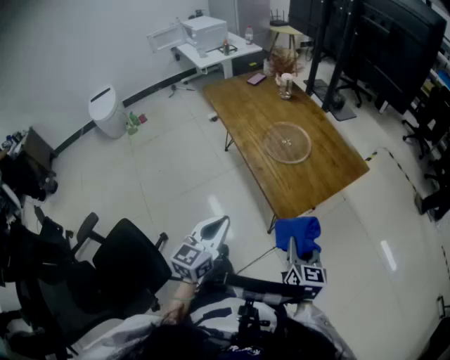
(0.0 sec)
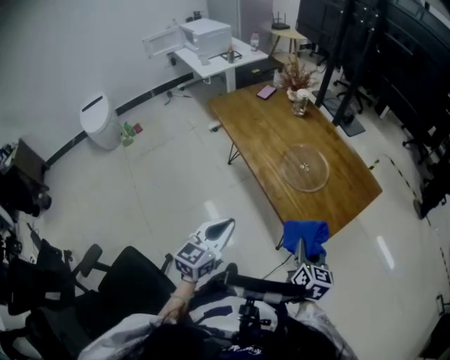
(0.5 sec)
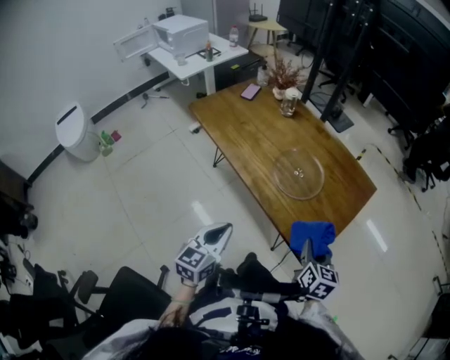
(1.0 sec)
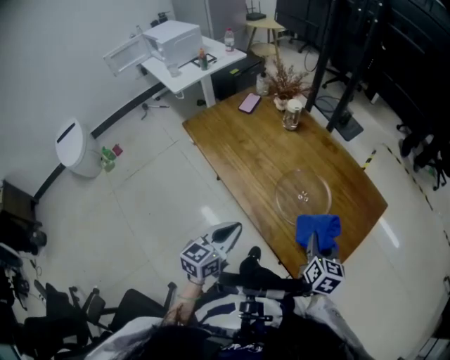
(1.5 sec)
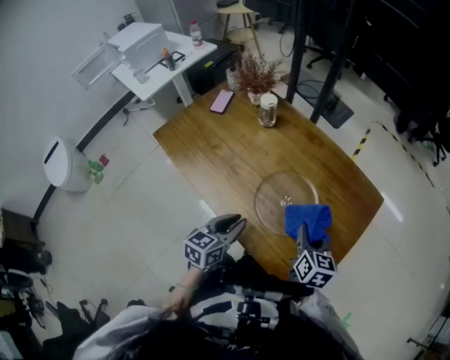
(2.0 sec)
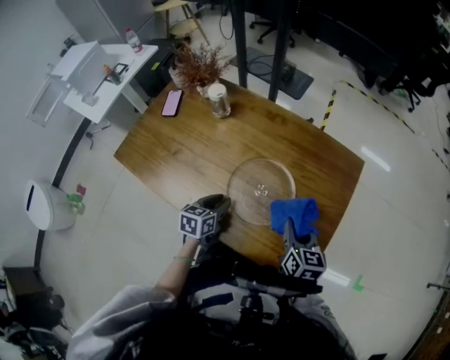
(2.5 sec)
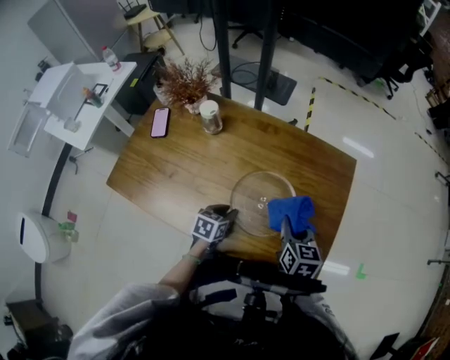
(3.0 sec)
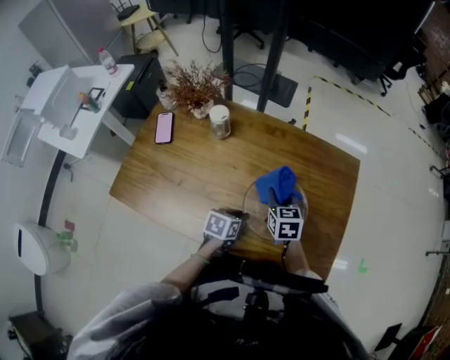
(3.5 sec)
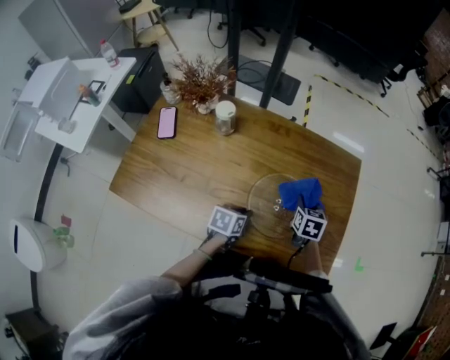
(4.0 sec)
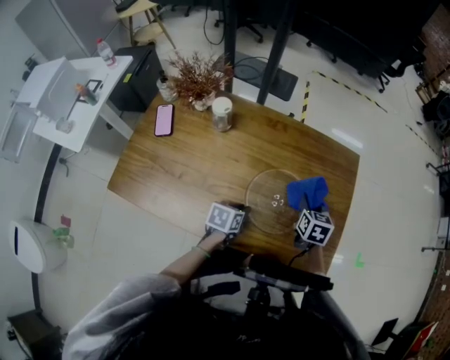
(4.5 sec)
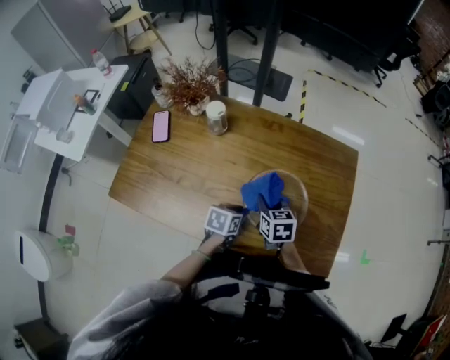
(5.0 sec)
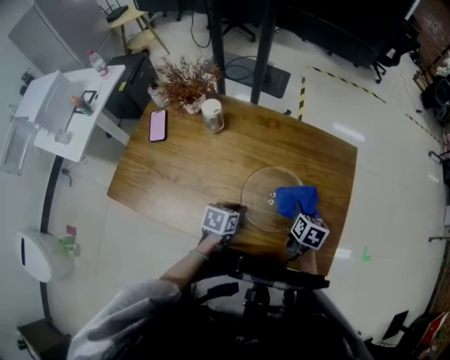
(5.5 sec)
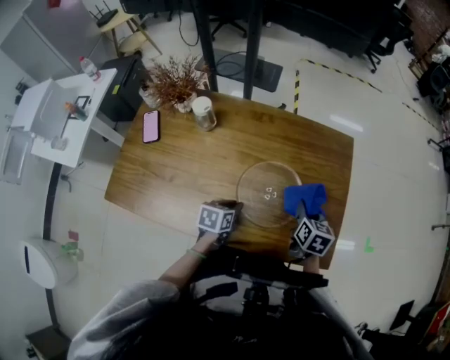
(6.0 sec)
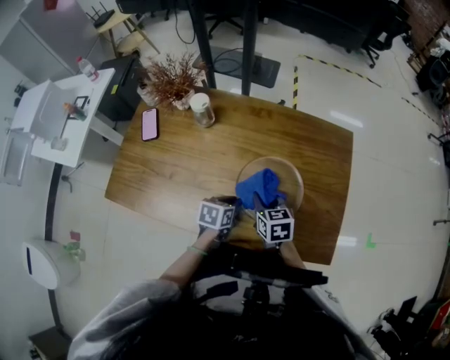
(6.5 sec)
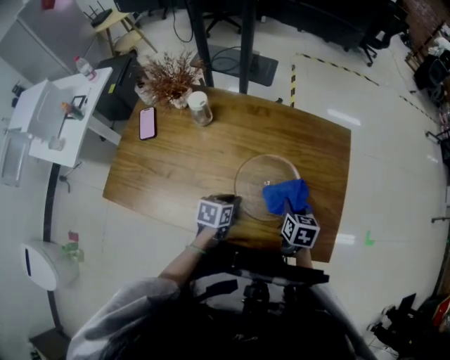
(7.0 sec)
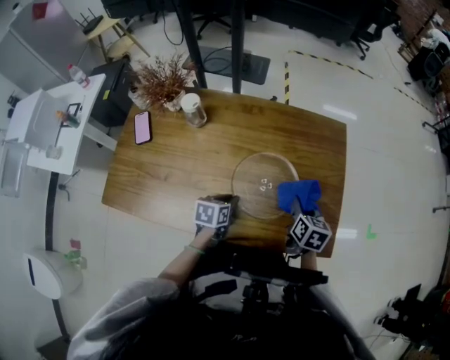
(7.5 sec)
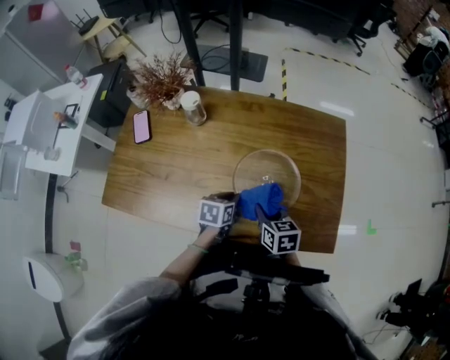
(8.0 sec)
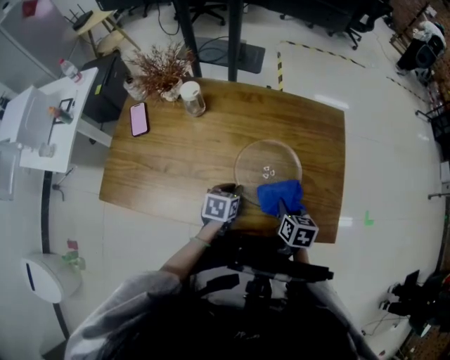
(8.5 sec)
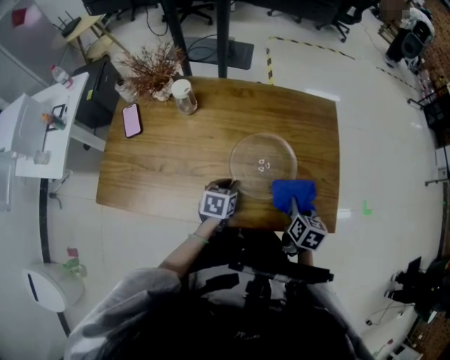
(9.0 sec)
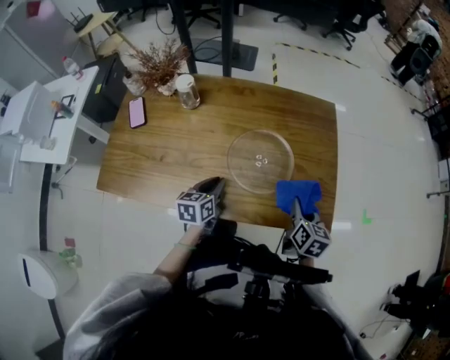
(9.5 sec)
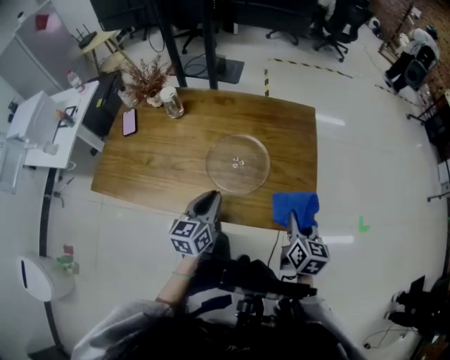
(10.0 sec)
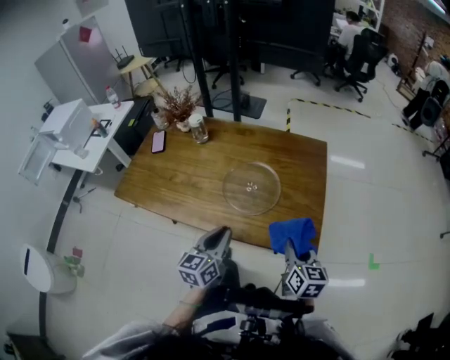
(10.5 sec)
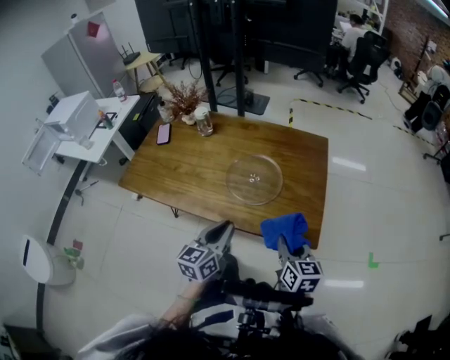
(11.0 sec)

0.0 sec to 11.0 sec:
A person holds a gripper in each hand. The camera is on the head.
0.0 sec to 2.0 sec: The grippers both shift forward by some 40 cm. The left gripper turns by about 30 degrees. Meanwhile the right gripper turns by roughly 20 degrees.
2.0 sec to 3.5 sec: The left gripper heads downward, covering approximately 15 cm, and rotates about 40 degrees, while the right gripper moves some 15 cm.
3.5 sec to 5.5 sec: The right gripper moves left and right over about 15 cm, changing direction 2 times, and turns by roughly 30 degrees.
5.5 sec to 7.5 sec: The right gripper goes to the left and returns, some 15 cm each way.
7.5 sec to 9.0 sec: The right gripper heads backward, covering some 10 cm, and travels to the left and back again, approximately 10 cm each way.
9.0 sec to 11.0 sec: The left gripper shifts about 30 cm backward, upward and to the right, and points its fingers some 40 degrees further upward. The right gripper moves backward and upward, some 15 cm, and rotates approximately 30 degrees.

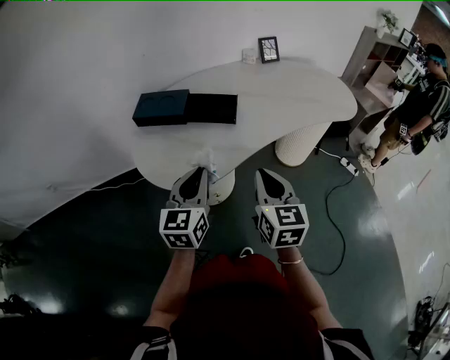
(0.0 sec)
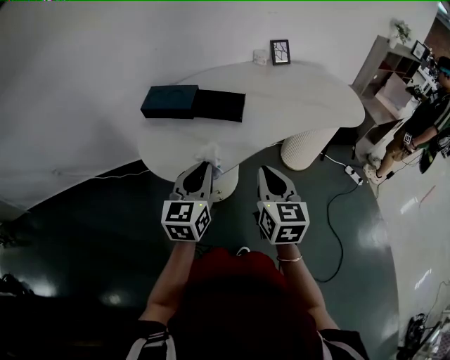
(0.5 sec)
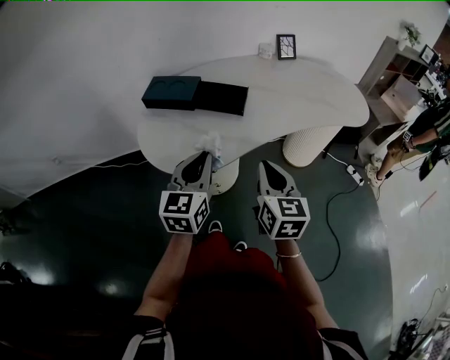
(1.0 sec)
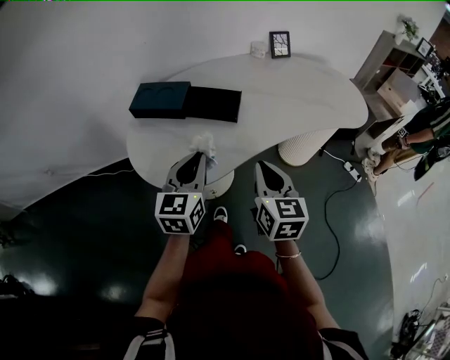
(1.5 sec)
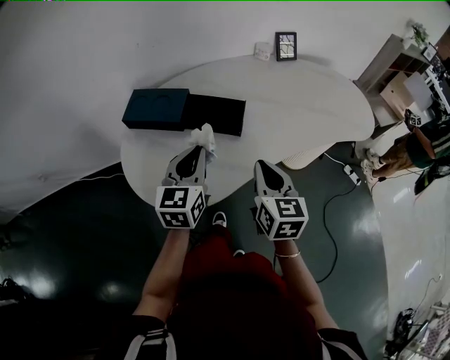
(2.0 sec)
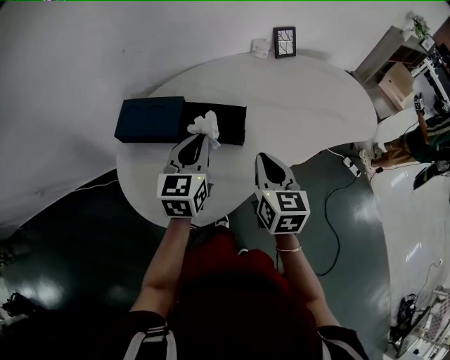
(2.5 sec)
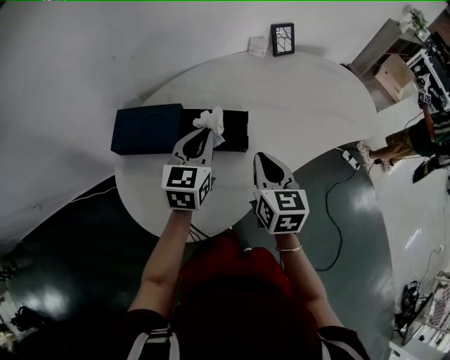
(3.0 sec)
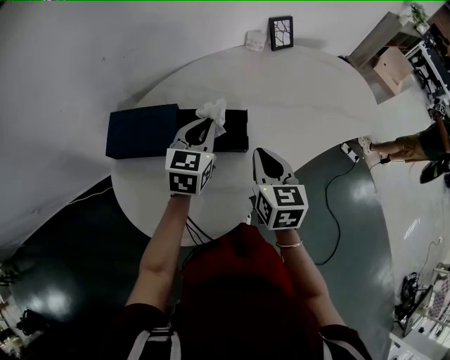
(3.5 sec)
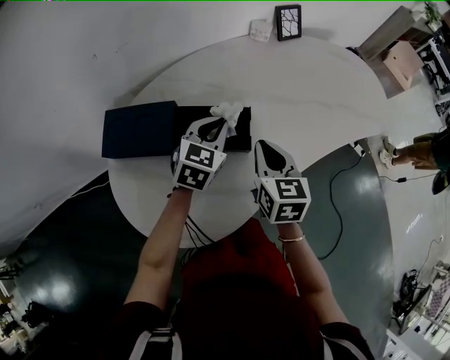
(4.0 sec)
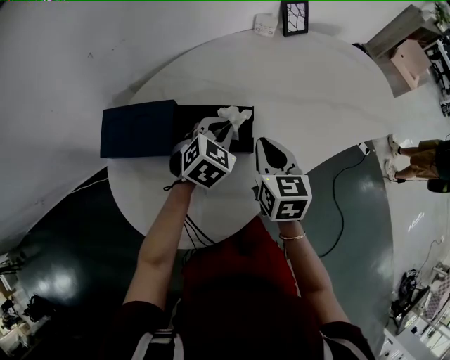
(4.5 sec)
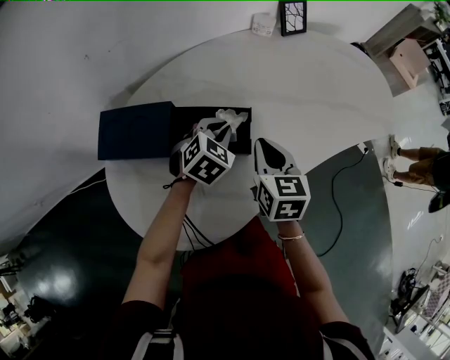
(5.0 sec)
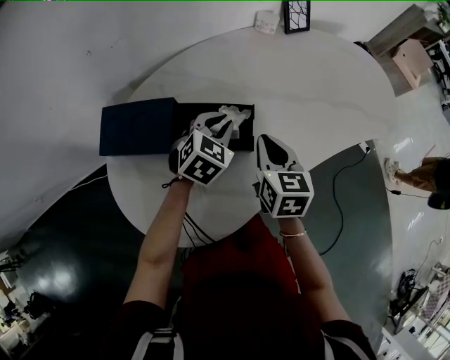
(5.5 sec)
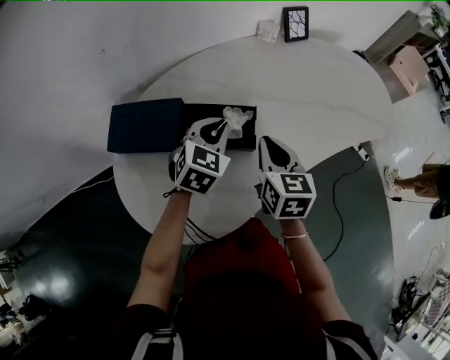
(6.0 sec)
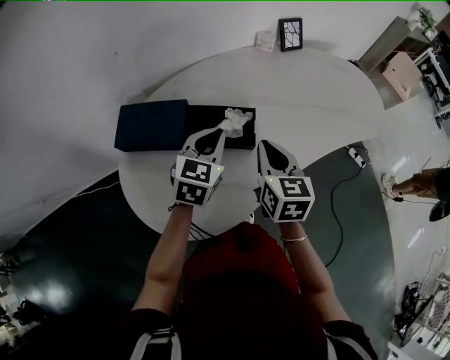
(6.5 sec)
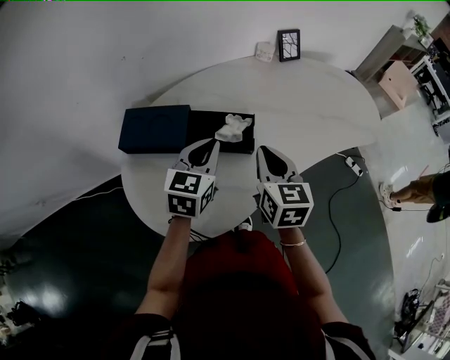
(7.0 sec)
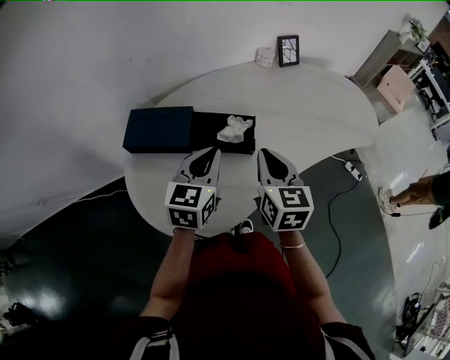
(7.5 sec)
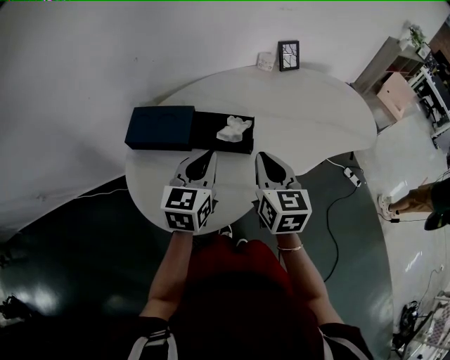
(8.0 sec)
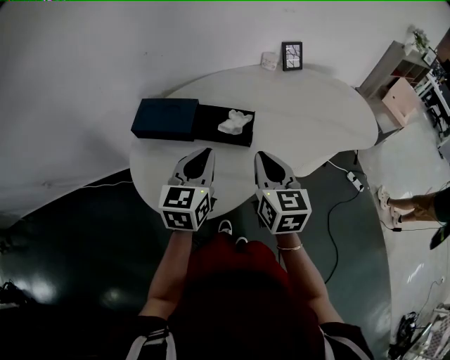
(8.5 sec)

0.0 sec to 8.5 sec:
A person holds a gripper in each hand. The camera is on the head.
0.0 sec to 2.0 sec: The grippers both shift forward by approximately 15 cm.
2.0 sec to 4.0 sec: The left gripper moves forward and downward, some 20 cm, and changes its angle by some 30 degrees. The right gripper moves forward, some 15 cm.
4.0 sec to 6.5 sec: The left gripper heads backward, covering roughly 5 cm.
6.5 sec to 8.5 sec: Both grippers travel together backward and upward, roughly 10 cm. The left gripper rotates roughly 20 degrees.

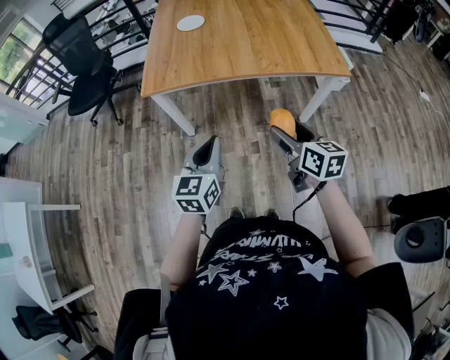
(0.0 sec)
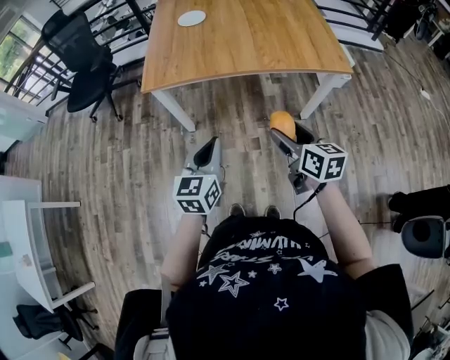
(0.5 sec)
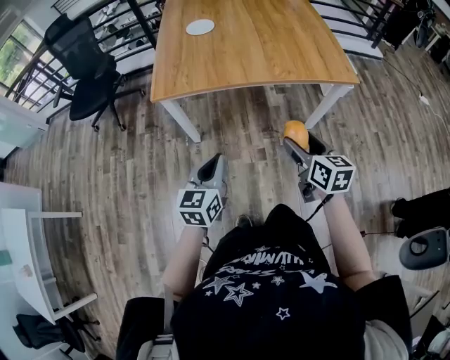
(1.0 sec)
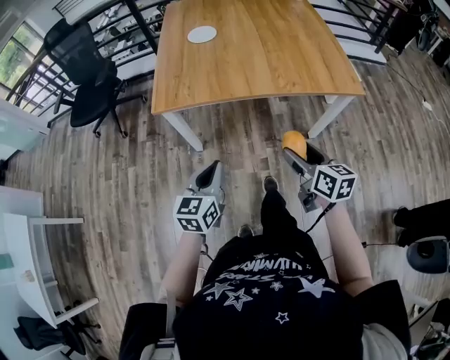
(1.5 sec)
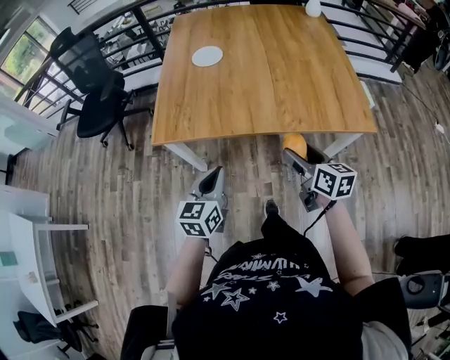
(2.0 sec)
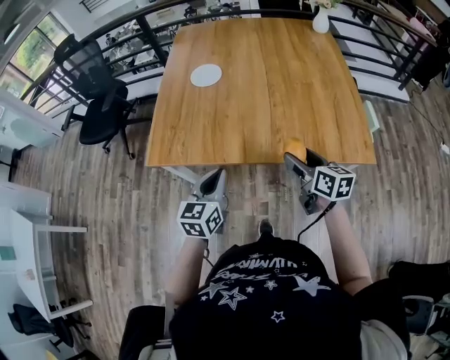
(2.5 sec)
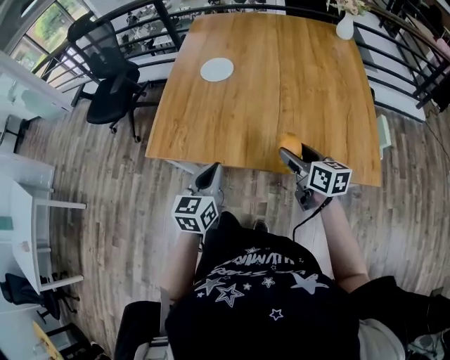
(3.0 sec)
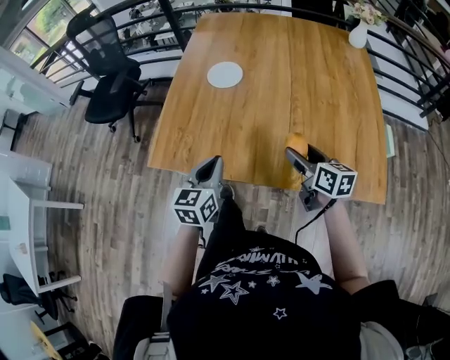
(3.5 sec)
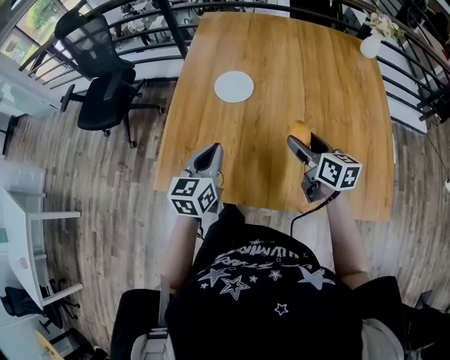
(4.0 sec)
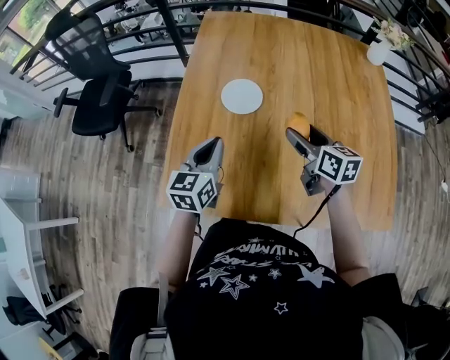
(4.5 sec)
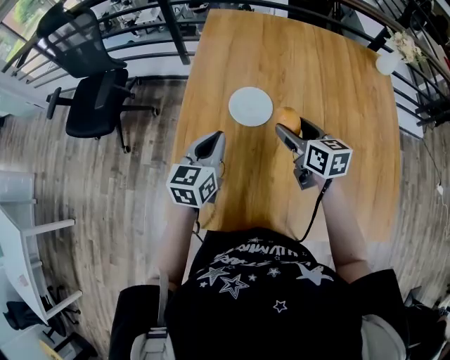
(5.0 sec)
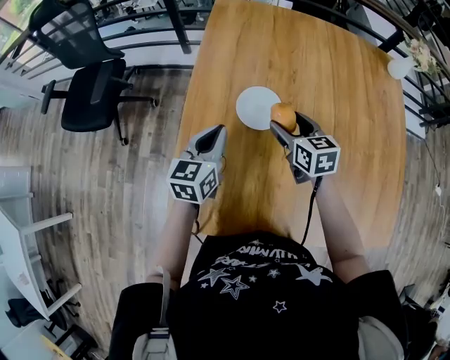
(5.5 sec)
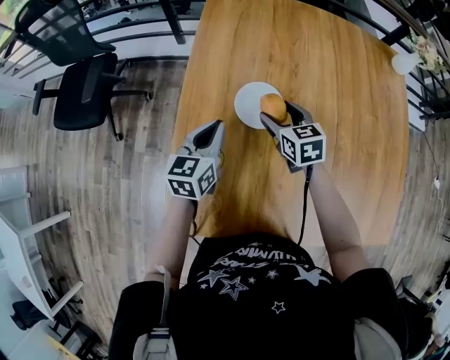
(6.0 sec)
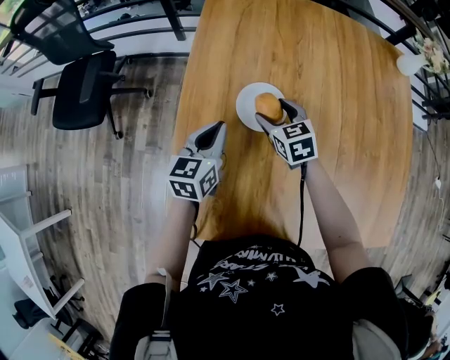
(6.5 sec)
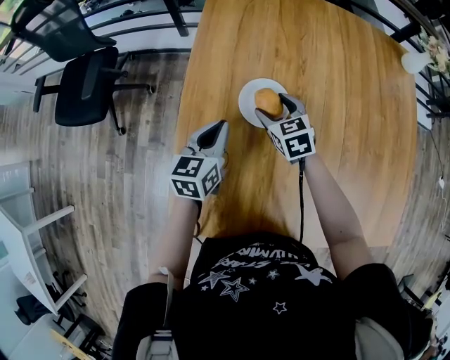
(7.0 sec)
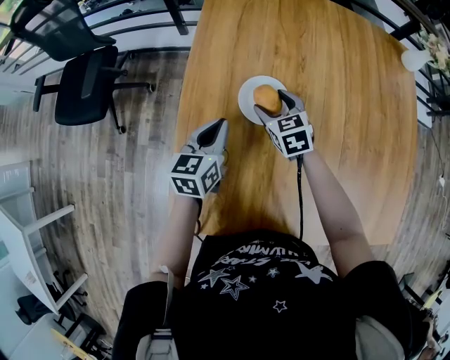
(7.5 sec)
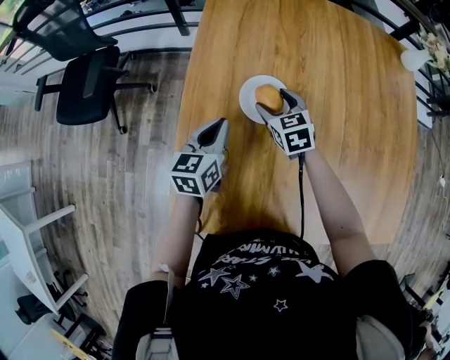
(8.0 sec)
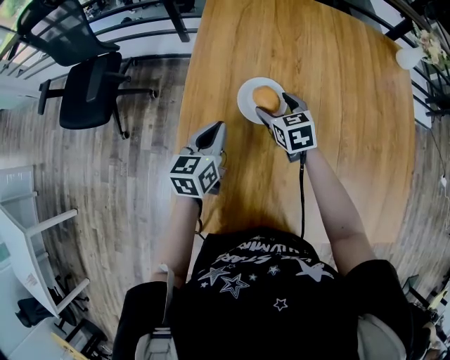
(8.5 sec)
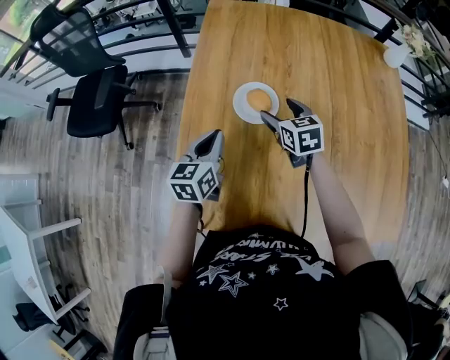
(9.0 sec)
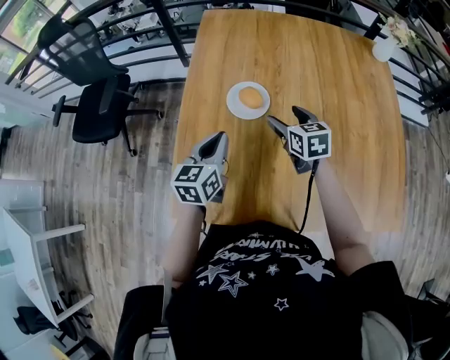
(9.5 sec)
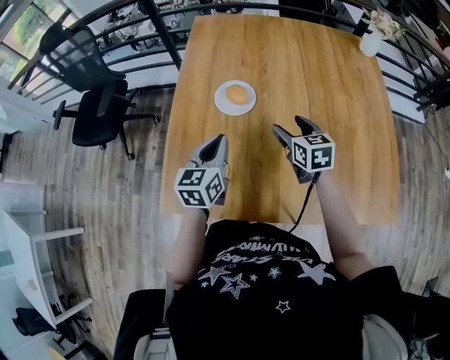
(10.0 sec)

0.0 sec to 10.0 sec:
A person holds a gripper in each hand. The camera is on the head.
0.0 sec to 2.0 sec: The two grippers go approximately 20 cm forward.
2.0 sec to 4.0 sec: The two grippers go roughly 35 cm forward.
4.0 sec to 6.0 sec: The right gripper heads forward and to the left, covering roughly 30 cm, and rotates some 30 degrees, while the left gripper moves forward, roughly 20 cm.
6.0 sec to 8.0 sec: There are only small adjustments of the grippers.
8.0 sec to 10.0 sec: Both grippers travel together backward, to the right and upward, some 20 cm.
